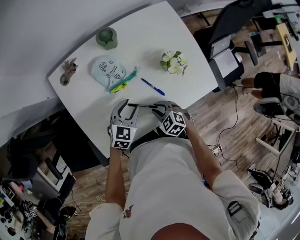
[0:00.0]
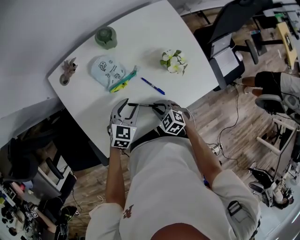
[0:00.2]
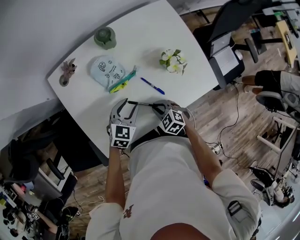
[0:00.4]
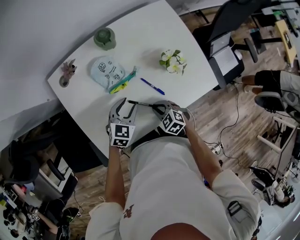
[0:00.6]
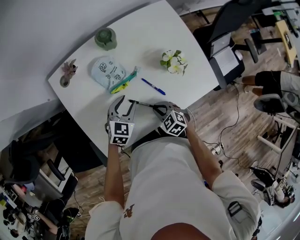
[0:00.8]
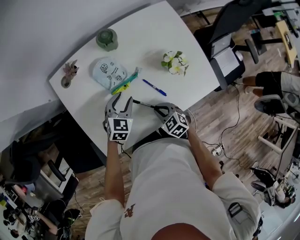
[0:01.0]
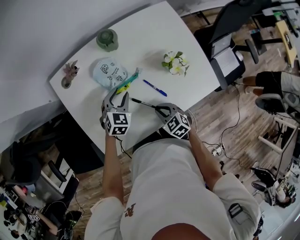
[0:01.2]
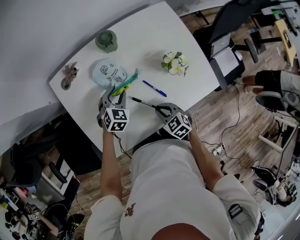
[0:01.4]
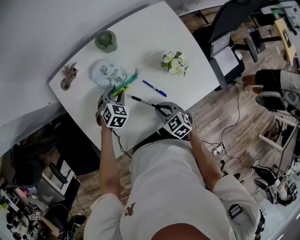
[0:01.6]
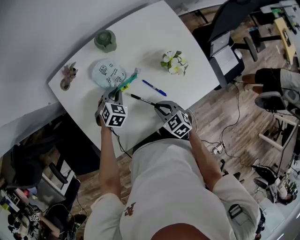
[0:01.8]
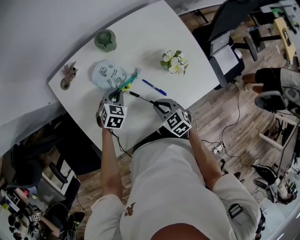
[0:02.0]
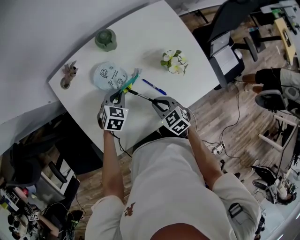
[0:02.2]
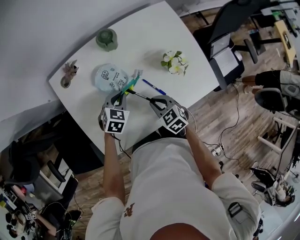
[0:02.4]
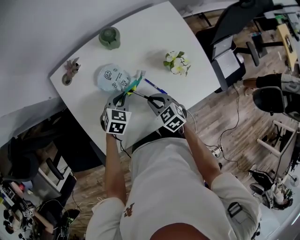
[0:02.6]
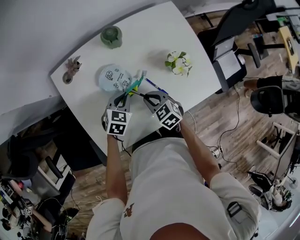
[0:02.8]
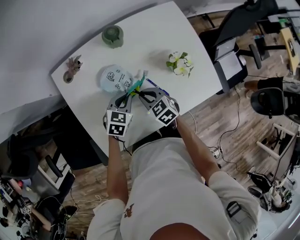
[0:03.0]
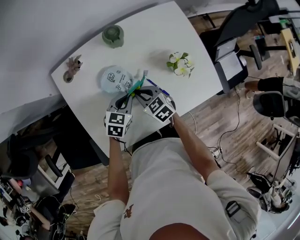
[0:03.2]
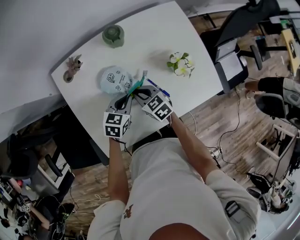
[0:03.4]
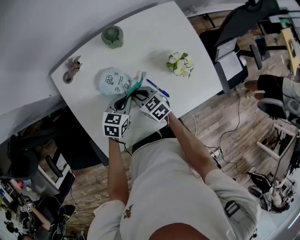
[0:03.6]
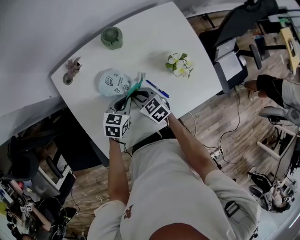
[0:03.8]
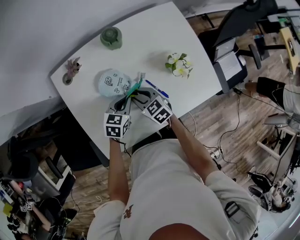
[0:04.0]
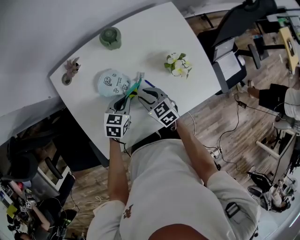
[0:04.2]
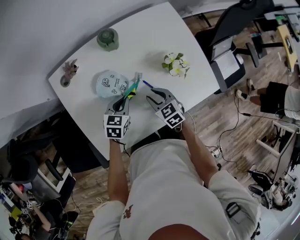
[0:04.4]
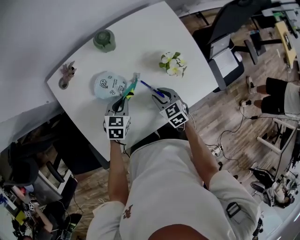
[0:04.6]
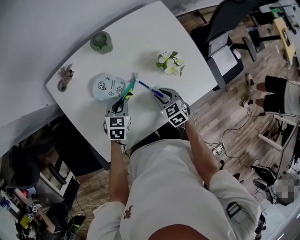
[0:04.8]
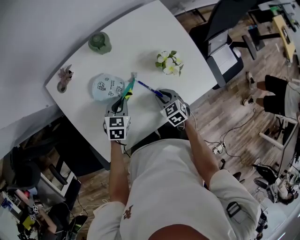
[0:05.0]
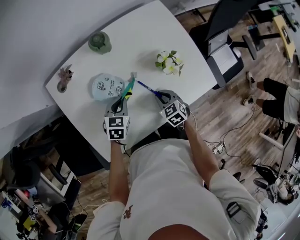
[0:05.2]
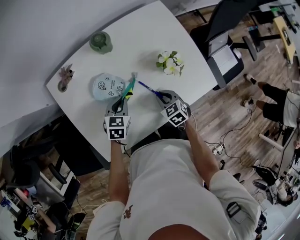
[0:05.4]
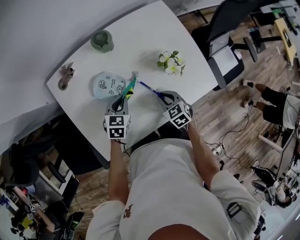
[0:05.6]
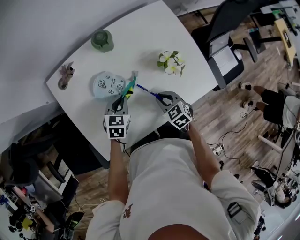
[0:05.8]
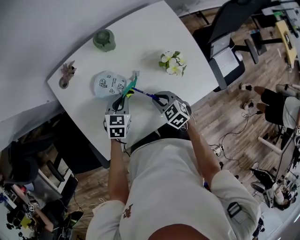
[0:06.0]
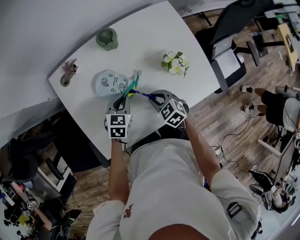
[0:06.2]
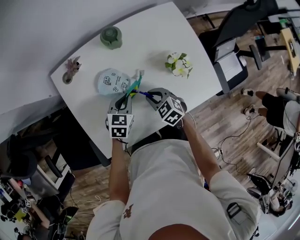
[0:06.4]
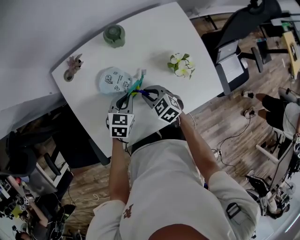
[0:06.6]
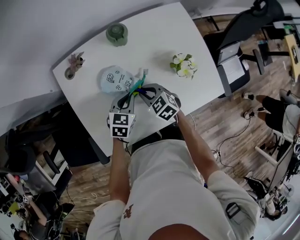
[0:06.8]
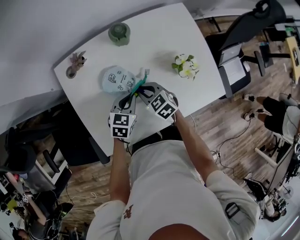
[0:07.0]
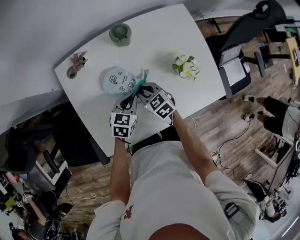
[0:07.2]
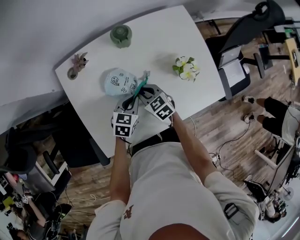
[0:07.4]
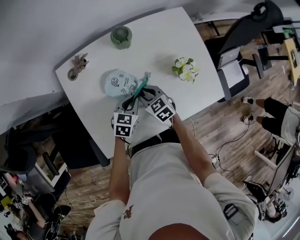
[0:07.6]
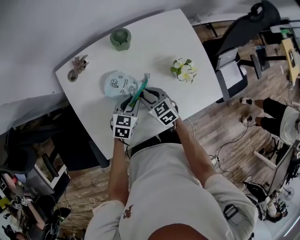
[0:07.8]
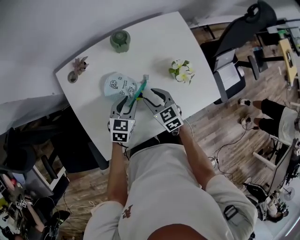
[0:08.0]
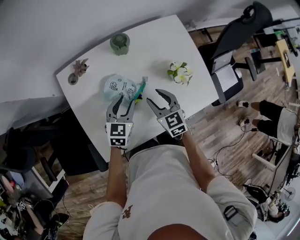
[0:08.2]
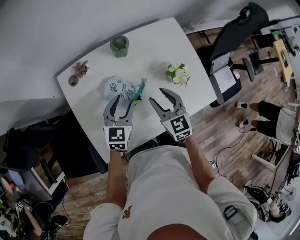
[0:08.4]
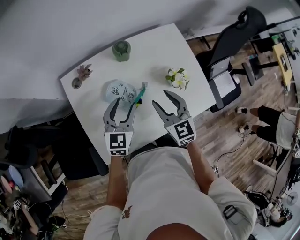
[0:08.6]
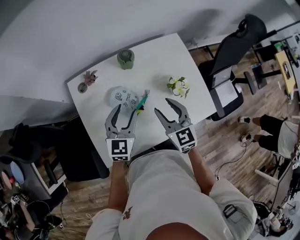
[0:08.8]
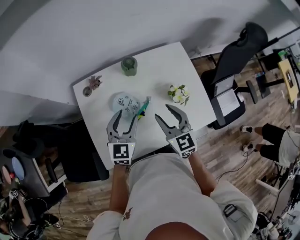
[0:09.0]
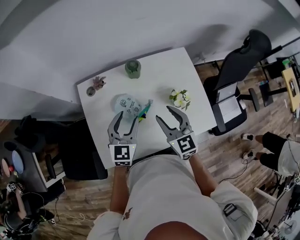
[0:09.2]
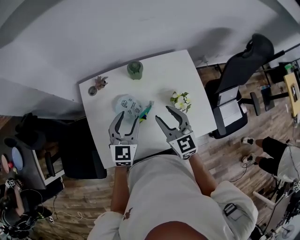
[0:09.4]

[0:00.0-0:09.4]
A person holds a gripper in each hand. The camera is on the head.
0:00.0 to 0:01.6: The left gripper heads forward and downward, covering about 10 cm, and rotates roughly 20 degrees.
0:01.6 to 0:03.2: The right gripper moves forward and to the left, some 15 cm; the left gripper changes place by approximately 5 cm, turns by some 30 degrees, and closes.
0:03.2 to 0:04.8: The right gripper is displaced to the right by approximately 15 cm, and opens up.
0:04.8 to 0:06.2: The right gripper shifts approximately 5 cm to the left.
0:06.2 to 0:07.8: The right gripper heads to the left, covering roughly 5 cm, and opens its fingers.
0:07.8 to 0:09.4: The two grippers go roughly 25 cm upward. The left gripper turns by about 40 degrees, and opens up. The right gripper turns by about 30 degrees.

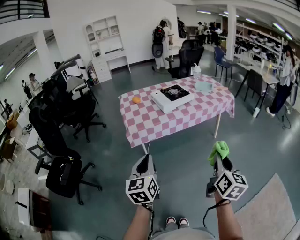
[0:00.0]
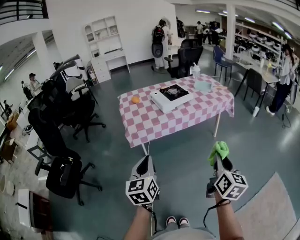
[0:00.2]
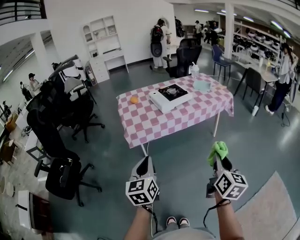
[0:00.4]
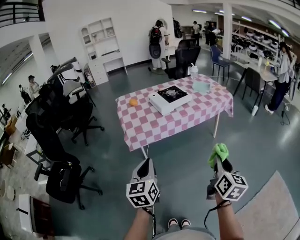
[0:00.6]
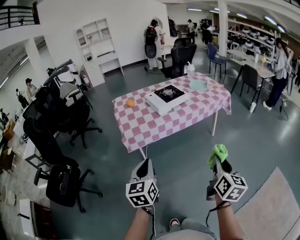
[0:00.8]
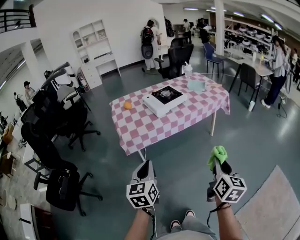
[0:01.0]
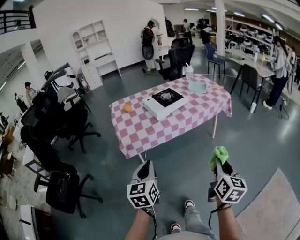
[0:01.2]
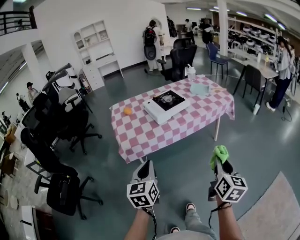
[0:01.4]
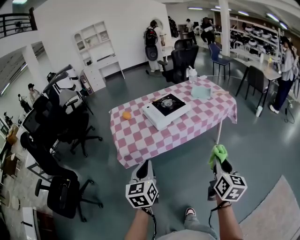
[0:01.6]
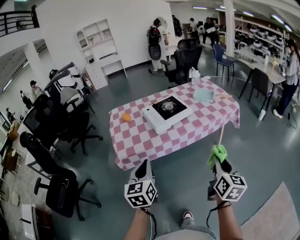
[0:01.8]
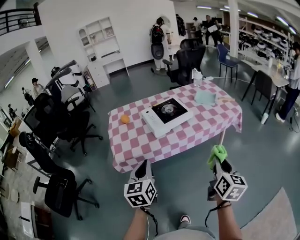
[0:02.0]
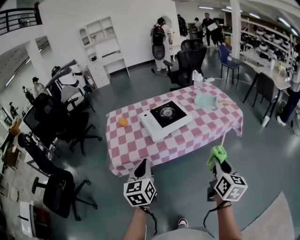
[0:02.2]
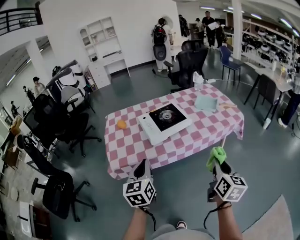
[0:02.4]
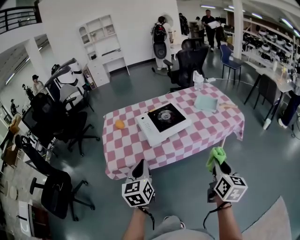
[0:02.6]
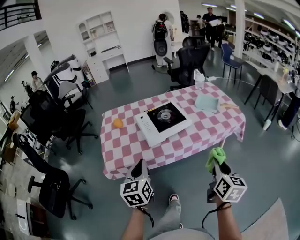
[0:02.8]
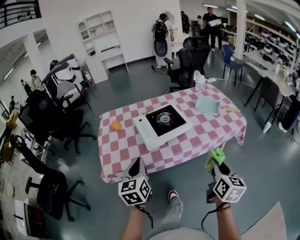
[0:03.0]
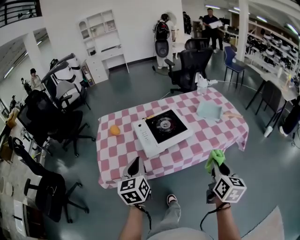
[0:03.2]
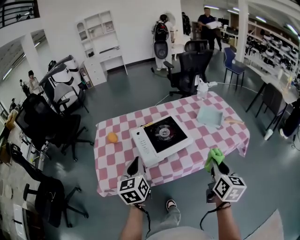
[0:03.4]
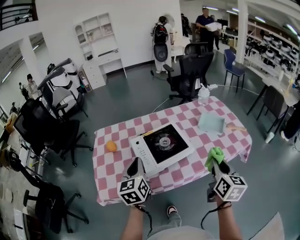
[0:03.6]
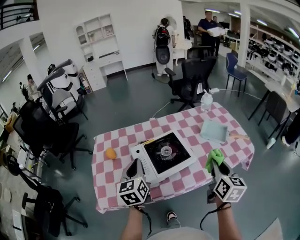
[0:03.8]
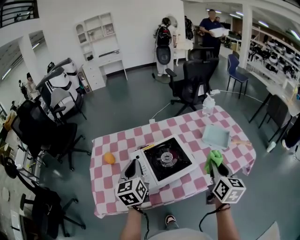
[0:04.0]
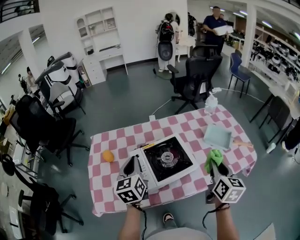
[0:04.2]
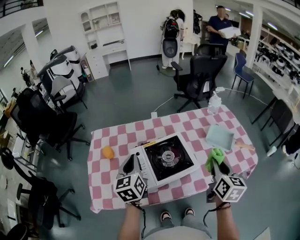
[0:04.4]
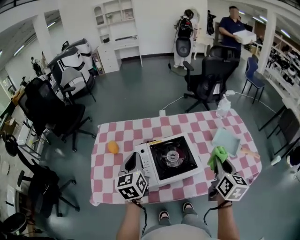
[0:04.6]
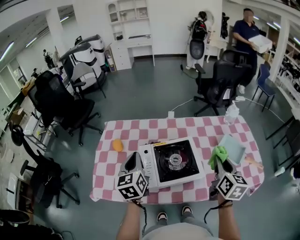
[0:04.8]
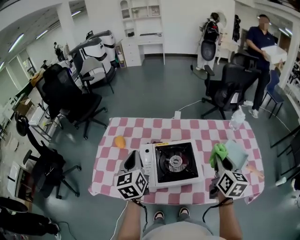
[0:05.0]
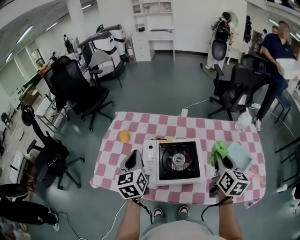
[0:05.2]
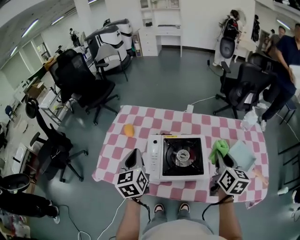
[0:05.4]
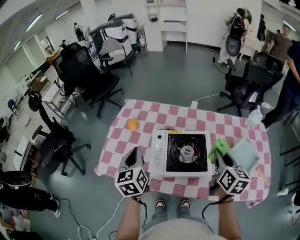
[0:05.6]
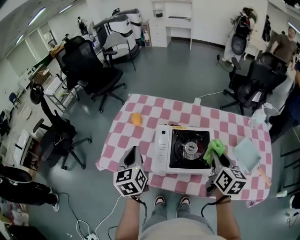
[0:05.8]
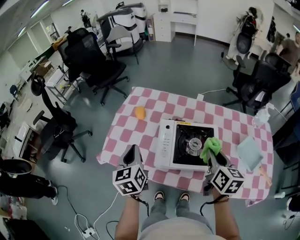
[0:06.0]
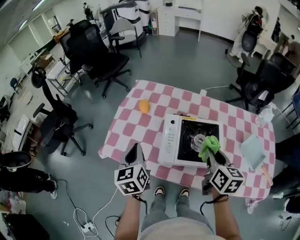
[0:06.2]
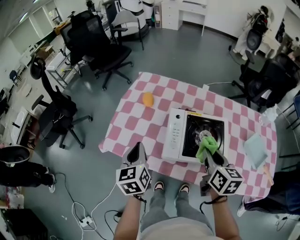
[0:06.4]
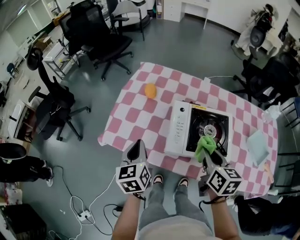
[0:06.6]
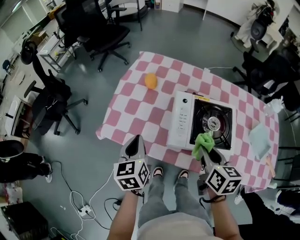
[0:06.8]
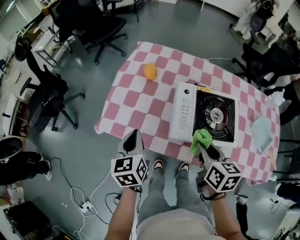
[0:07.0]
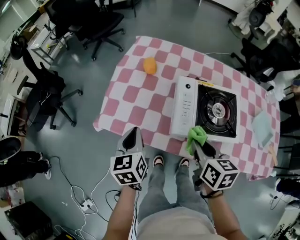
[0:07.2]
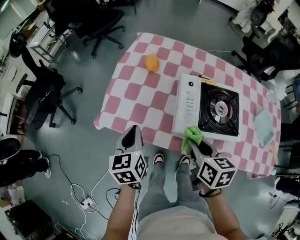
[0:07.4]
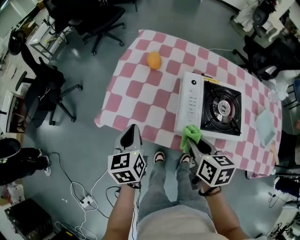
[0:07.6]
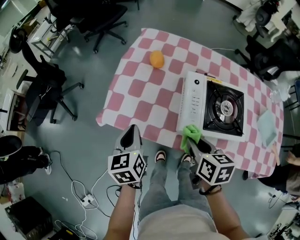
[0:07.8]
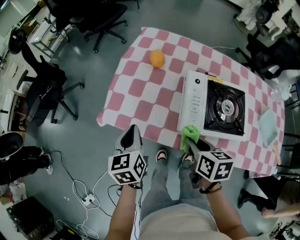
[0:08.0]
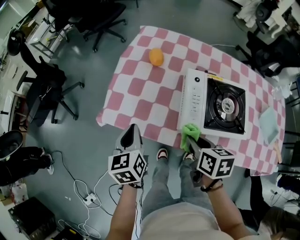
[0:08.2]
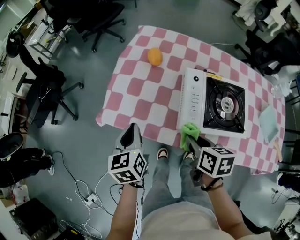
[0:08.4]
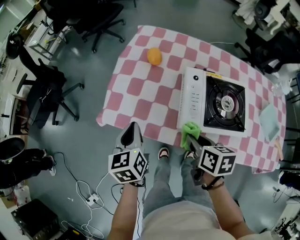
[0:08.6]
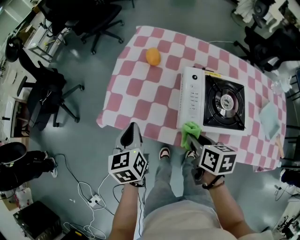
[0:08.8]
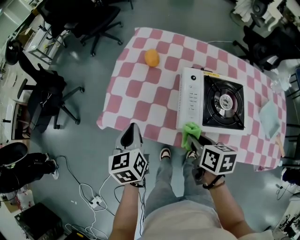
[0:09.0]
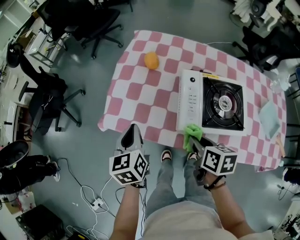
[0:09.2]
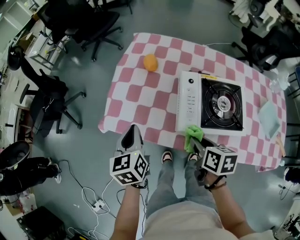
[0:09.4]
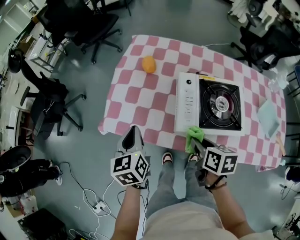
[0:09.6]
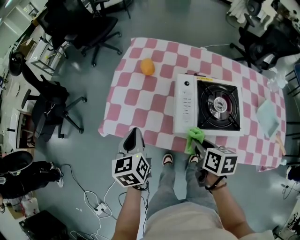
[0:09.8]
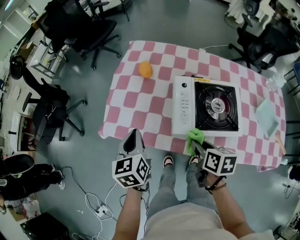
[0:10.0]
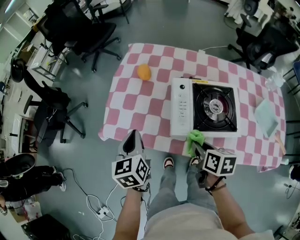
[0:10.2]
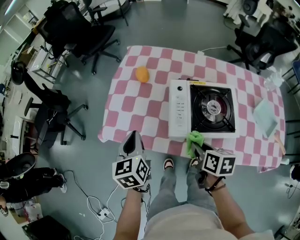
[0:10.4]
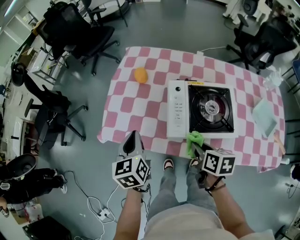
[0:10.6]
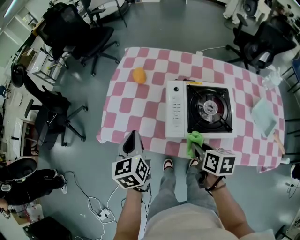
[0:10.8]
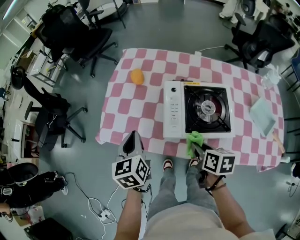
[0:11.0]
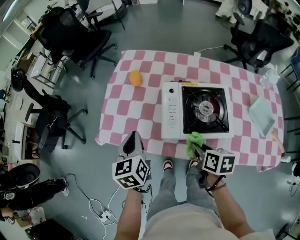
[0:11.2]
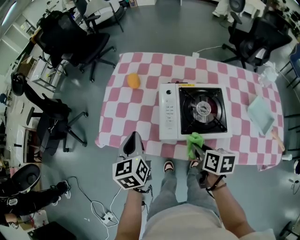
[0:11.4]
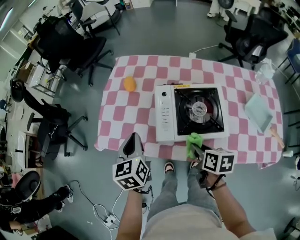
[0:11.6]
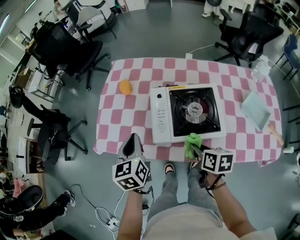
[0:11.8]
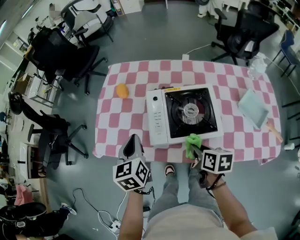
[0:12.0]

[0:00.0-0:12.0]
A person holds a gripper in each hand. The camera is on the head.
0:00.0 to 0:01.6: Both grippers travel together forward, roughly 15 cm.
0:01.6 to 0:03.0: The grippers both shift forward by about 25 cm.
0:03.0 to 0:04.4: Both grippers move forward, approximately 30 cm.
0:04.4 to 0:06.0: The right gripper moves about 15 cm, and swivels approximately 30 degrees; the left gripper shifts by approximately 15 cm, and turns by roughly 30 degrees.
0:06.0 to 0:07.6: The right gripper goes some 25 cm to the left and downward, and turns by roughly 20 degrees; the left gripper goes approximately 15 cm downward and to the left.
0:07.6 to 0:09.0: There are only small adjustments of the grippers.
0:09.0 to 0:10.4: The right gripper travels to the right by some 5 cm; the left gripper shifts by about 5 cm.
0:10.4 to 0:12.0: The two grippers go approximately 10 cm to the right.

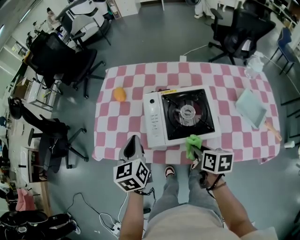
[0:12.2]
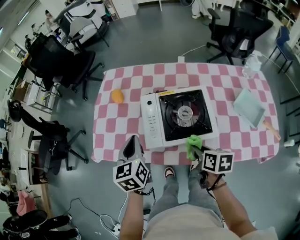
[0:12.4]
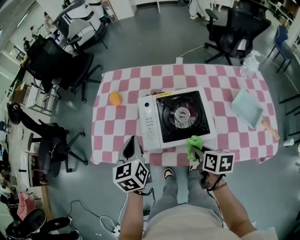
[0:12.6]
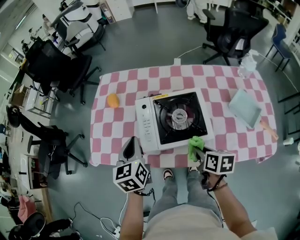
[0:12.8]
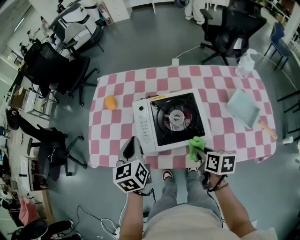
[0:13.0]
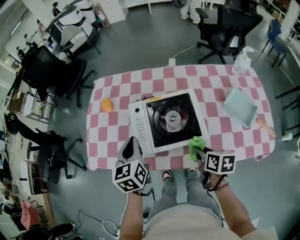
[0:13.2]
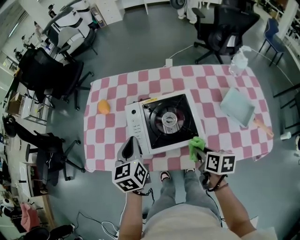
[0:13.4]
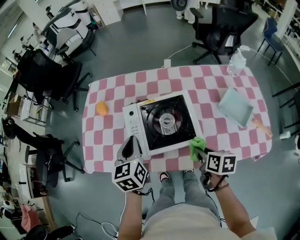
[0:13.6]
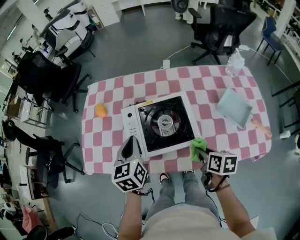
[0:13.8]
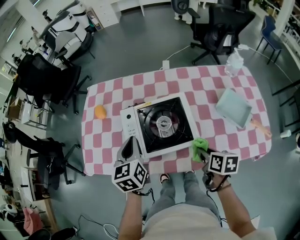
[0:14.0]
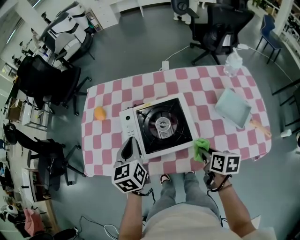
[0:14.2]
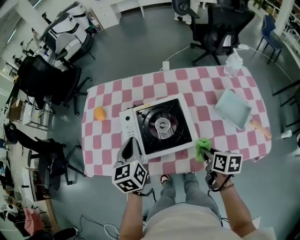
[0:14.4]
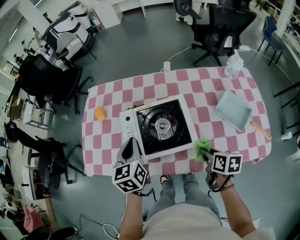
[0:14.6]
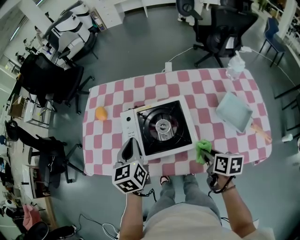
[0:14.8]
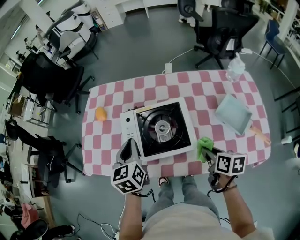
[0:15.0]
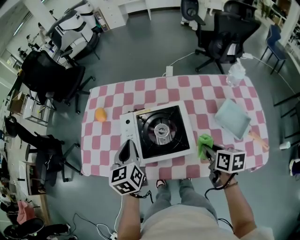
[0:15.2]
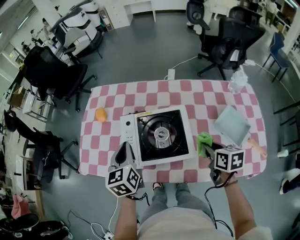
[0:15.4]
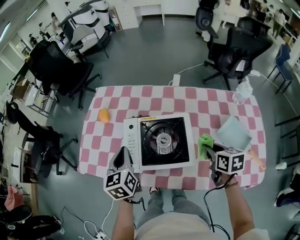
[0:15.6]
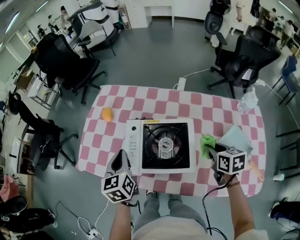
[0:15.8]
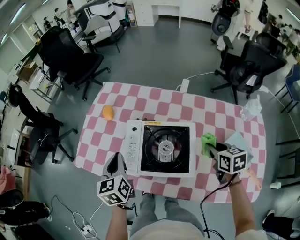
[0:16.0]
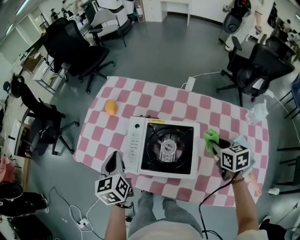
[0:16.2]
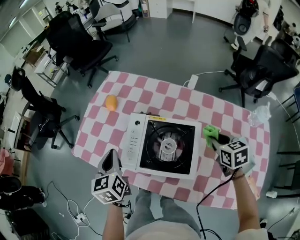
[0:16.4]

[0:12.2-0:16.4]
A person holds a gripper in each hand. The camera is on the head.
0:12.2 to 0:13.6: Both grippers move to the right, about 10 cm.
0:13.6 to 0:15.0: The right gripper goes about 5 cm to the right.
0:15.0 to 0:16.4: The right gripper heads forward, covering about 20 cm, and twists roughly 50 degrees counterclockwise, seen from behind. The left gripper heads to the left, covering about 10 cm, and changes its angle by some 20 degrees.
